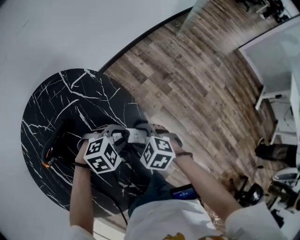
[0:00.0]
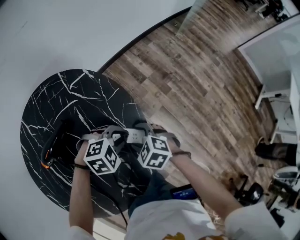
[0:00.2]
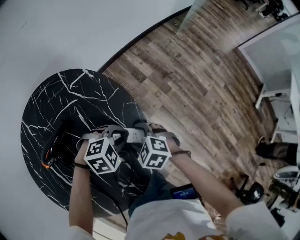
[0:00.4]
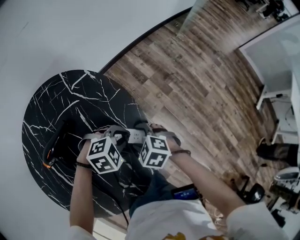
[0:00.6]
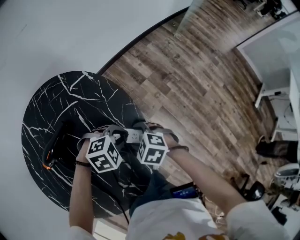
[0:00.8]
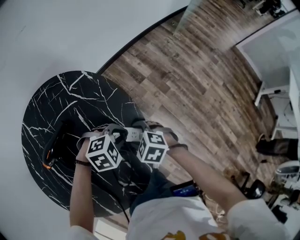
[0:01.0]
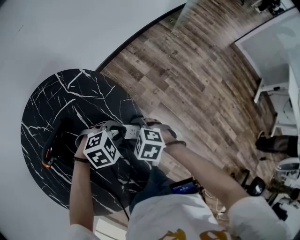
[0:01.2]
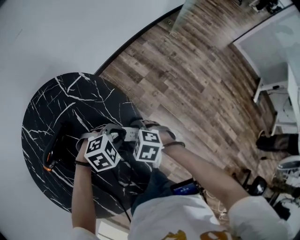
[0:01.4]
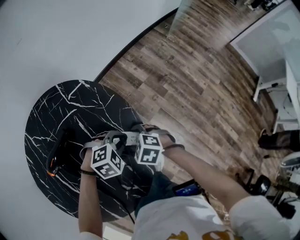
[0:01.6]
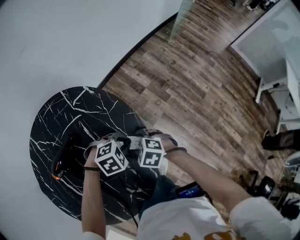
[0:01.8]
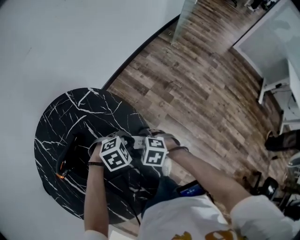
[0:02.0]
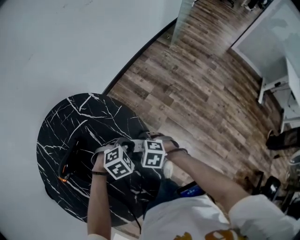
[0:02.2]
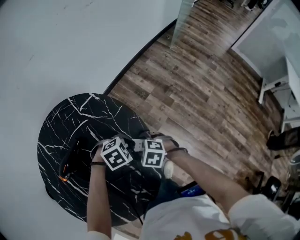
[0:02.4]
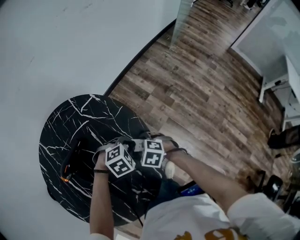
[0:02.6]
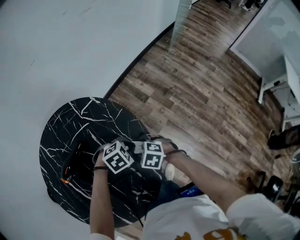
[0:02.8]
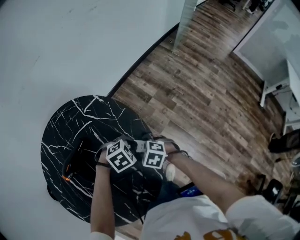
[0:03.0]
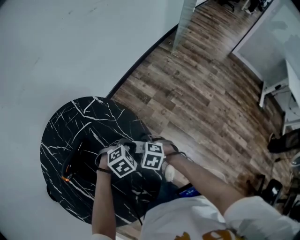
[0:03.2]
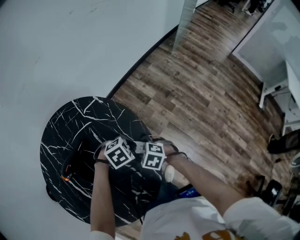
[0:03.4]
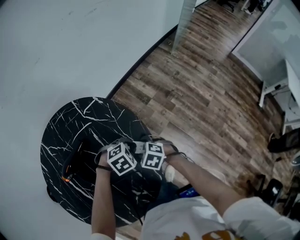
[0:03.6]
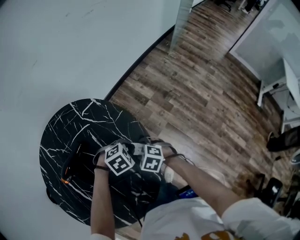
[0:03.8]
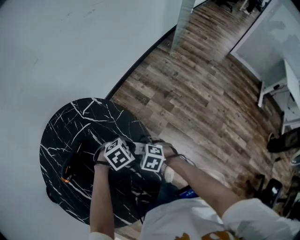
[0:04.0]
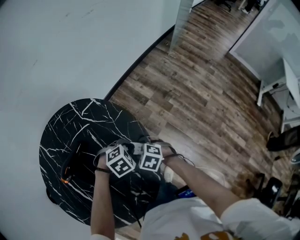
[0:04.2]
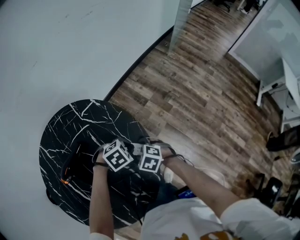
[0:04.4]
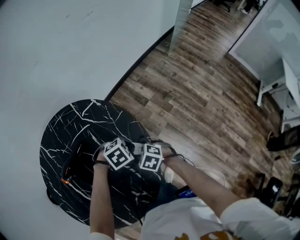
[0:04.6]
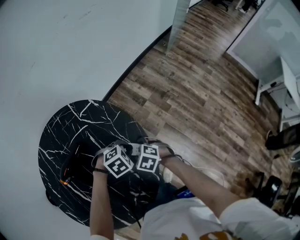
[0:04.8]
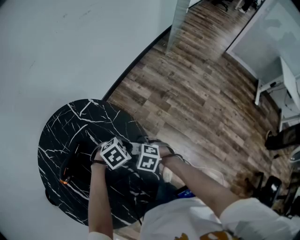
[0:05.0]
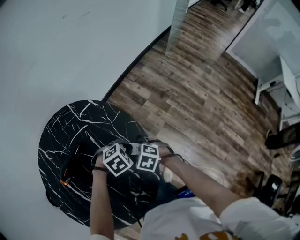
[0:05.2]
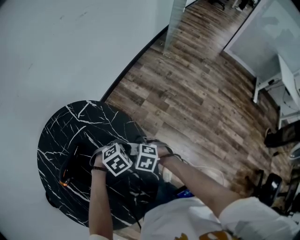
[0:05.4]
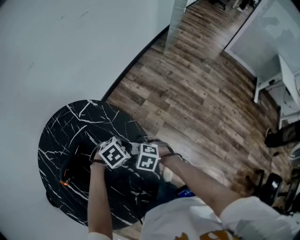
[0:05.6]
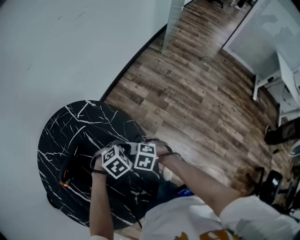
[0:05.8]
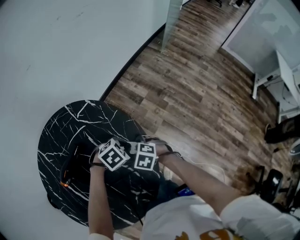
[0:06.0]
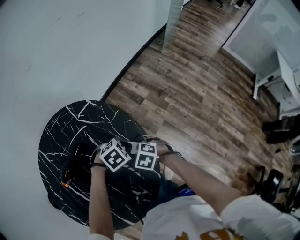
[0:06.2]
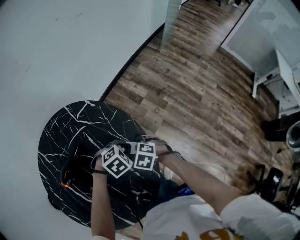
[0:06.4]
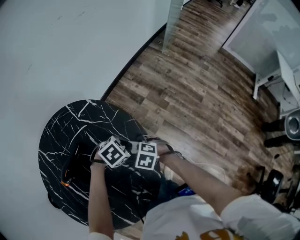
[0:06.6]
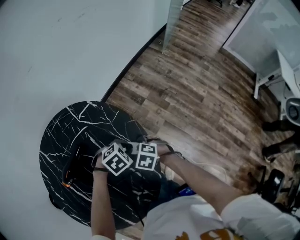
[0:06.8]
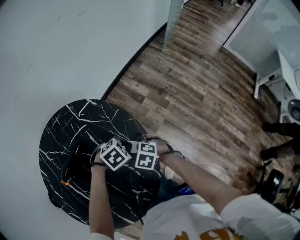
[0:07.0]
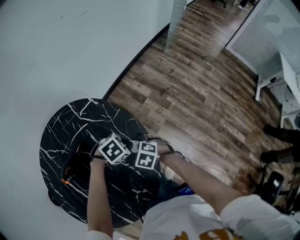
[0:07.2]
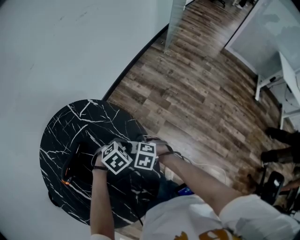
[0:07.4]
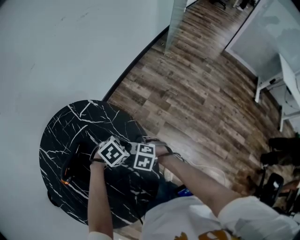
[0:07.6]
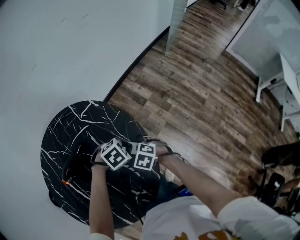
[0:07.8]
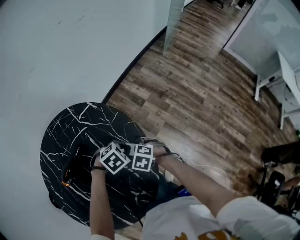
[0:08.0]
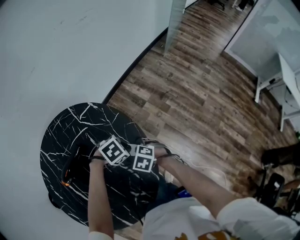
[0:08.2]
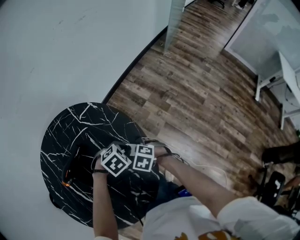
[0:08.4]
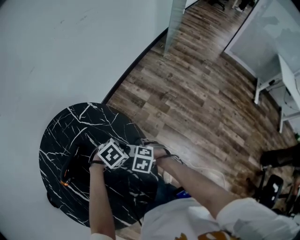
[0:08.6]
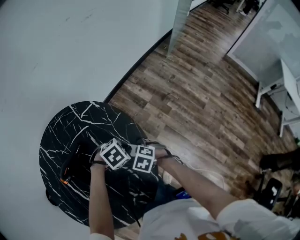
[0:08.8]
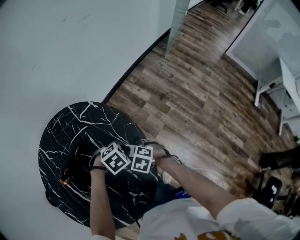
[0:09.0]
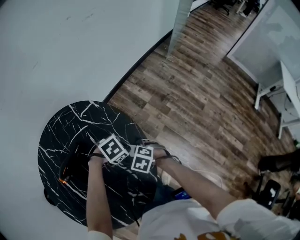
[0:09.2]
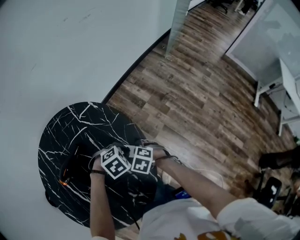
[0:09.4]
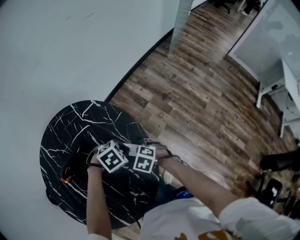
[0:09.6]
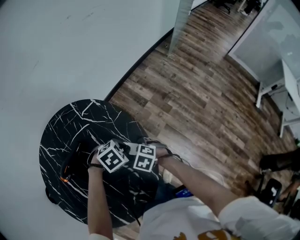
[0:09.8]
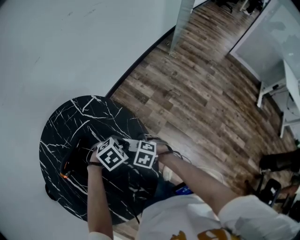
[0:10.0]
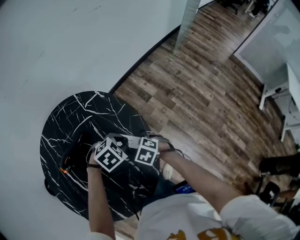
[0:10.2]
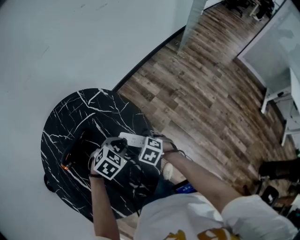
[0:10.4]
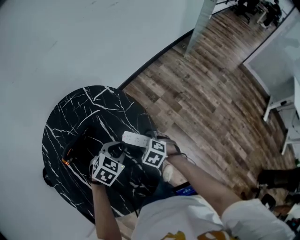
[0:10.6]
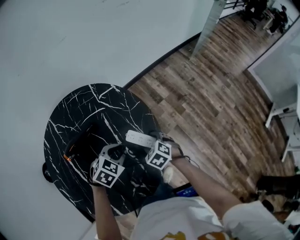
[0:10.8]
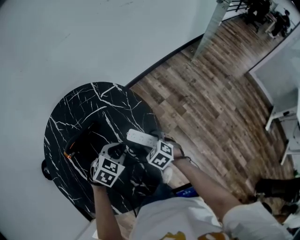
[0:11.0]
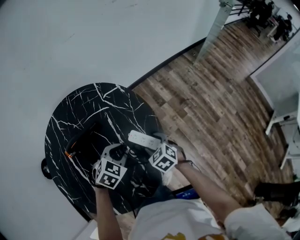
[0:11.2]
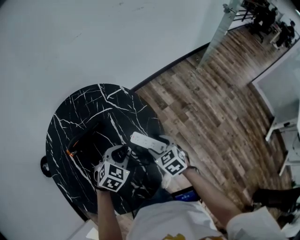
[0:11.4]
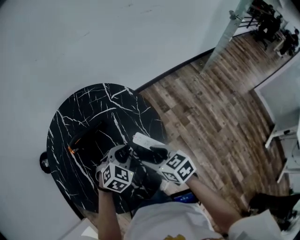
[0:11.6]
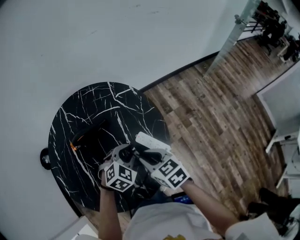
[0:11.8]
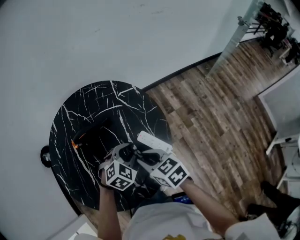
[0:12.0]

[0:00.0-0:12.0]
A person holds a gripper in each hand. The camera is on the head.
0:00.0 to 0:06.0: The grippers make only small movements.
0:06.0 to 0:09.0: The grippers move only a little.
0:09.0 to 0:10.4: The left gripper changes place by some 5 cm, and turns by some 20 degrees.
0:10.4 to 0:12.0: The right gripper is displaced upward and to the left by roughly 15 cm, turns by some 30 degrees, and closes its fingers; the left gripper moves to the left, approximately 5 cm, and turns by about 20 degrees.

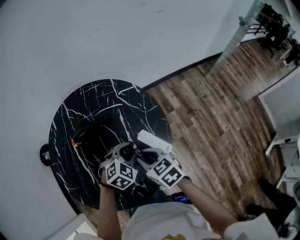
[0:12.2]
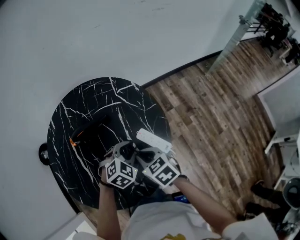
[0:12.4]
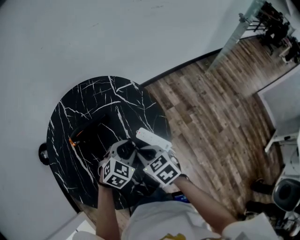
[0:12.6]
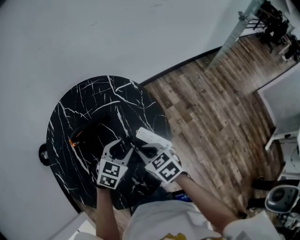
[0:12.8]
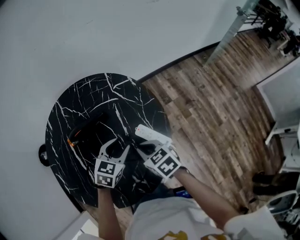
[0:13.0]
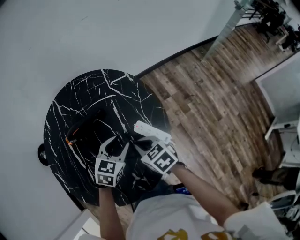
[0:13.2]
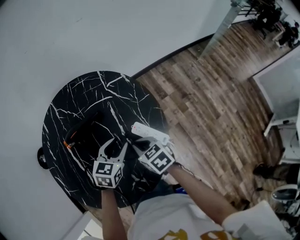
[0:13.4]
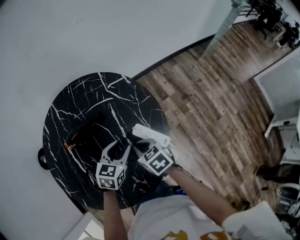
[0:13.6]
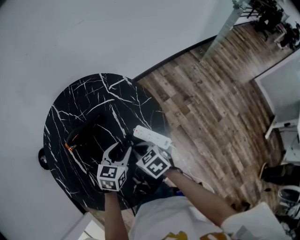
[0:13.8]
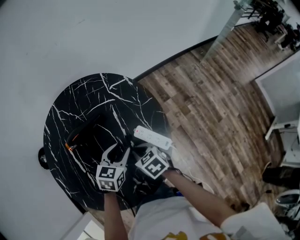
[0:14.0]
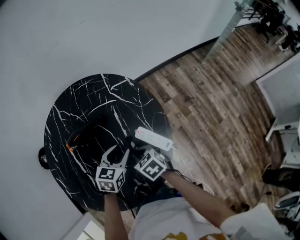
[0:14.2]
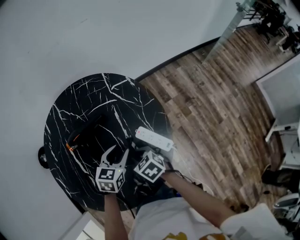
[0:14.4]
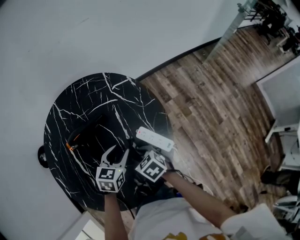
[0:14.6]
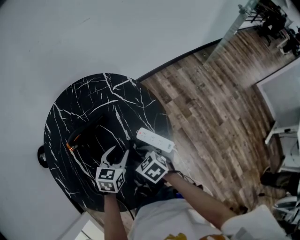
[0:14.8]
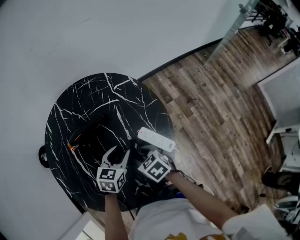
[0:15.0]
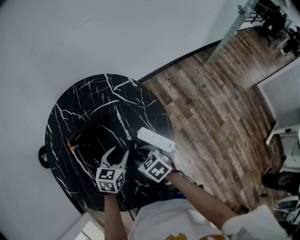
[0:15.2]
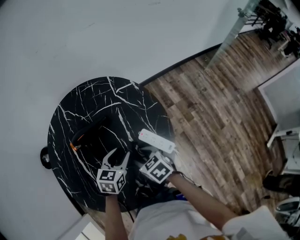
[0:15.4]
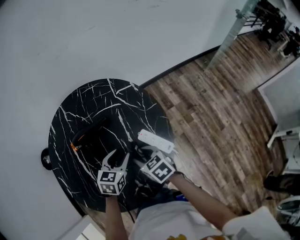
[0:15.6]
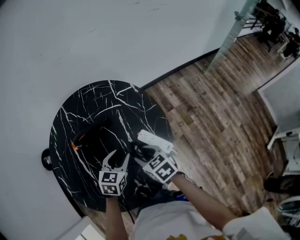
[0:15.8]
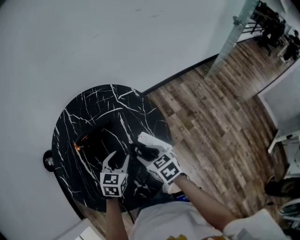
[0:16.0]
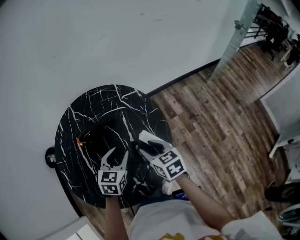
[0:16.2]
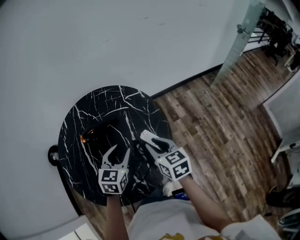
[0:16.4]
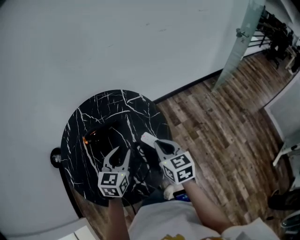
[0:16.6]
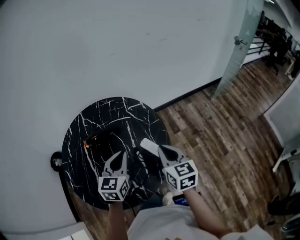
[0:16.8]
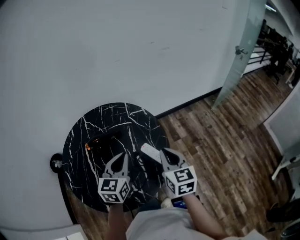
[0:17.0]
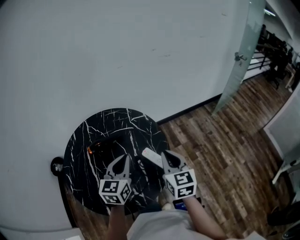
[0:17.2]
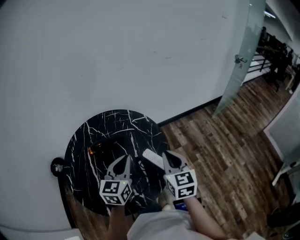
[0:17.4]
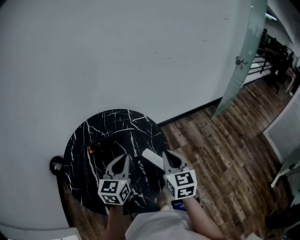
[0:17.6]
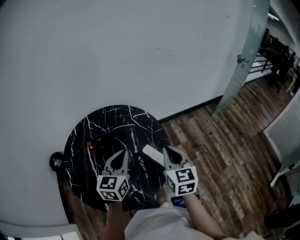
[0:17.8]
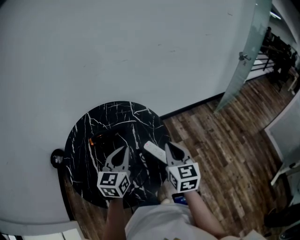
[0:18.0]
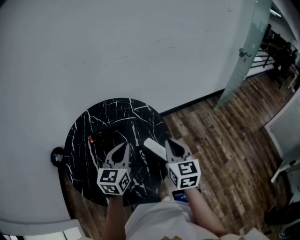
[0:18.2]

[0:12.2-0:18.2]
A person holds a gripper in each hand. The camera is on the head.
0:12.2 to 0:13.8: The left gripper swivels roughly 40 degrees, while the right gripper goes approximately 10 cm downward.
0:13.8 to 0:15.2: The right gripper opens.
0:15.2 to 0:16.6: The right gripper heads upward and to the right, covering some 20 cm, rotates about 40 degrees, and closes up; the left gripper moves upward, roughly 15 cm, and rotates about 20 degrees.
0:16.6 to 0:18.2: Both grippers travel together upward, roughly 5 cm. The left gripper closes up.

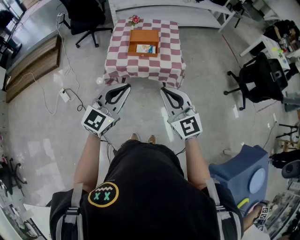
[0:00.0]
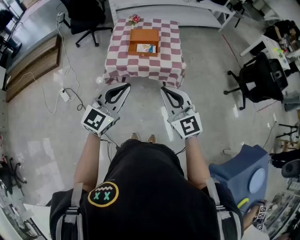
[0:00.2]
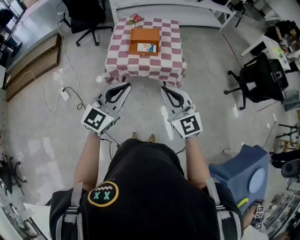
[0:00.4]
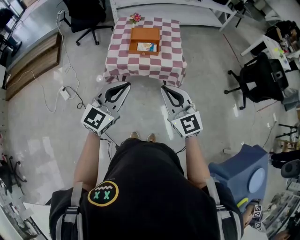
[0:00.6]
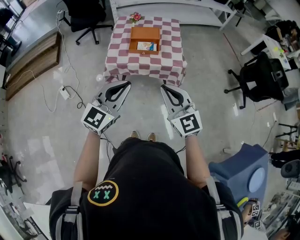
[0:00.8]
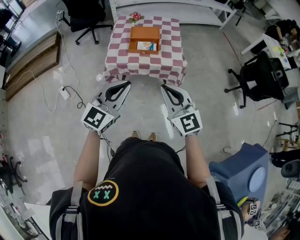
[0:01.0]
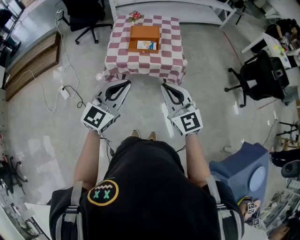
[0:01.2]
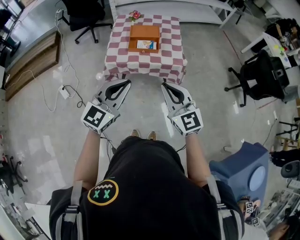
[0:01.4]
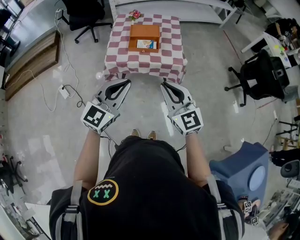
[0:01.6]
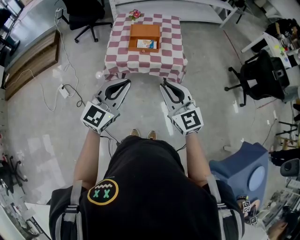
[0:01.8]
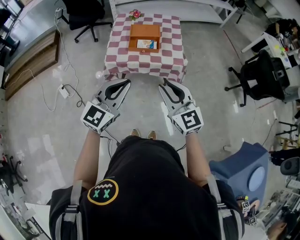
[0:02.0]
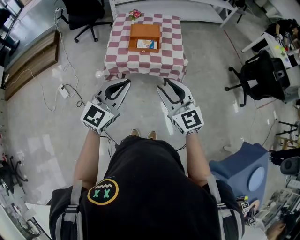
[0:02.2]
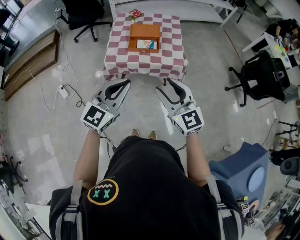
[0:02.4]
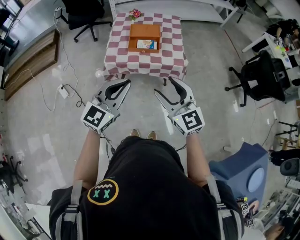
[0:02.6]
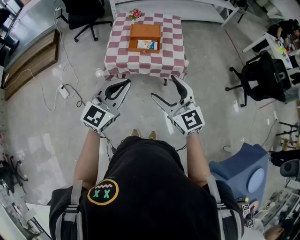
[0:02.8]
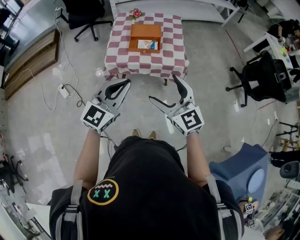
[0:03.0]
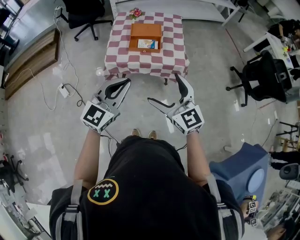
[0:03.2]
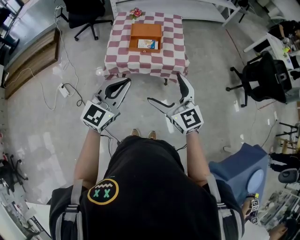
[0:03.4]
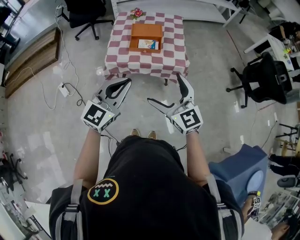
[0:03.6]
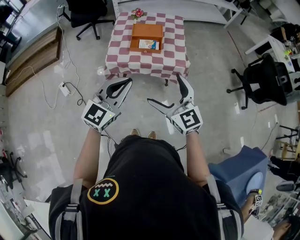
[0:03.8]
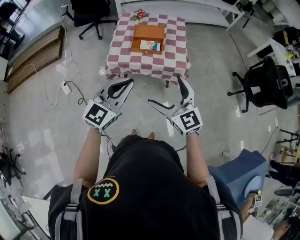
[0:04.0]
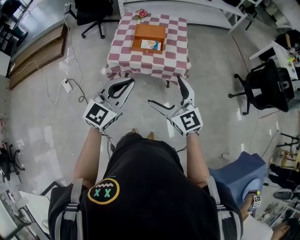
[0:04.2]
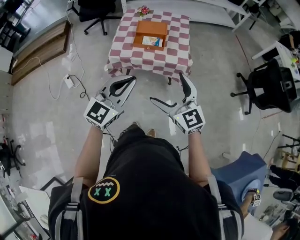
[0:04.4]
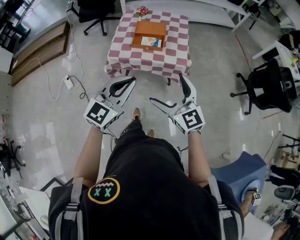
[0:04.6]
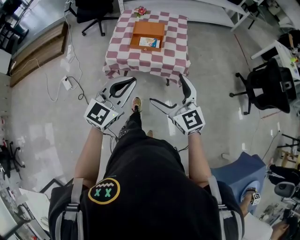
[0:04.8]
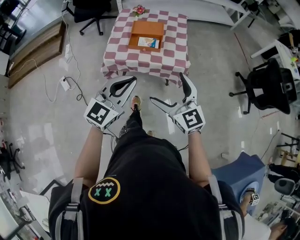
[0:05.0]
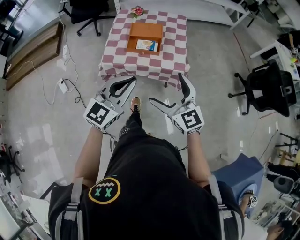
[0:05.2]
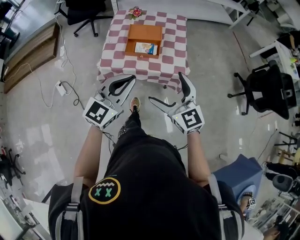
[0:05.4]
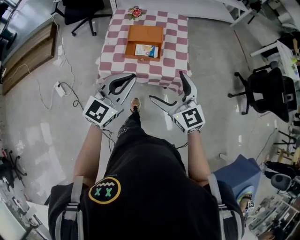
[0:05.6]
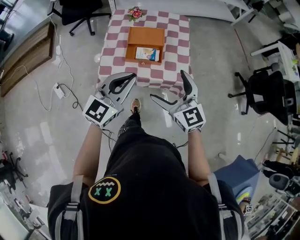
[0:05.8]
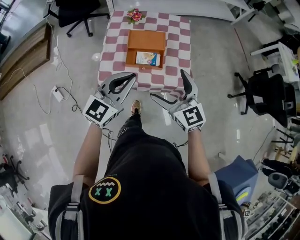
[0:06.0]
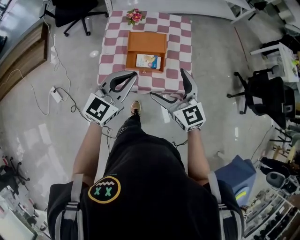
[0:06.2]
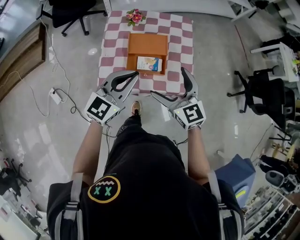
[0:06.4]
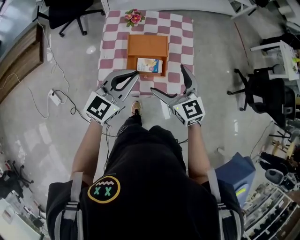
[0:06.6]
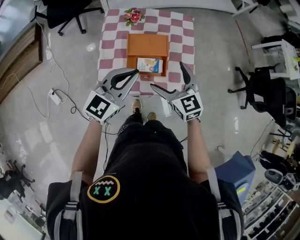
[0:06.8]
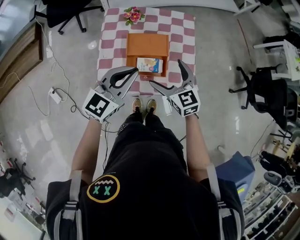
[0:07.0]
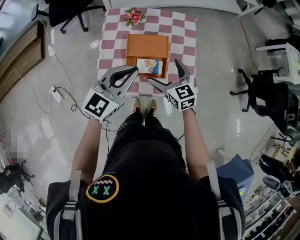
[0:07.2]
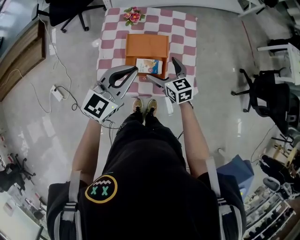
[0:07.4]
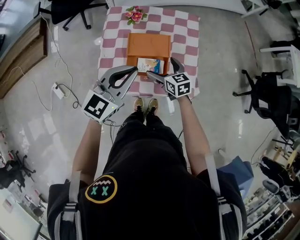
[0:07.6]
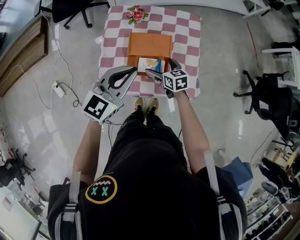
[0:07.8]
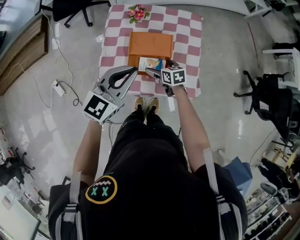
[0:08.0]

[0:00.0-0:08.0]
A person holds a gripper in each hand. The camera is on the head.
0:00.0 to 0:01.6: The grippers stay close to where they were, moving slightly.
0:01.6 to 0:03.2: The right gripper opens its fingers.
0:03.2 to 0:04.8: The two grippers go some 5 cm to the right.
0:04.8 to 0:06.4: The two grippers go about 35 cm forward.
0:06.4 to 0:08.0: The right gripper moves downward and forward, about 30 cm, and rotates about 40 degrees. The left gripper goes approximately 5 cm forward.
